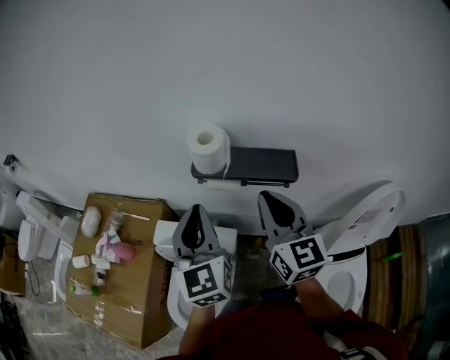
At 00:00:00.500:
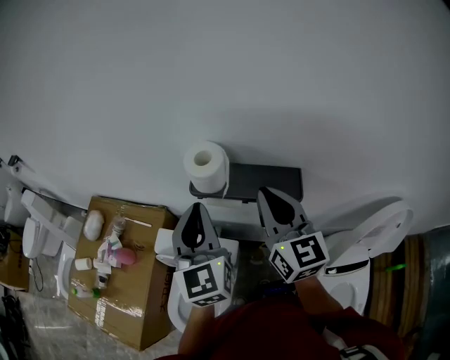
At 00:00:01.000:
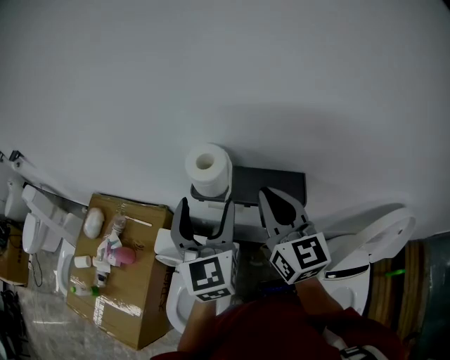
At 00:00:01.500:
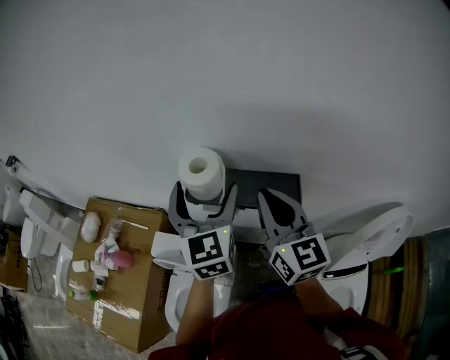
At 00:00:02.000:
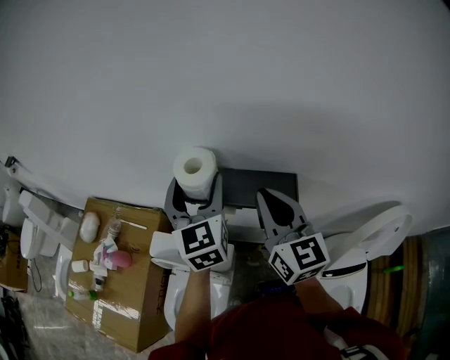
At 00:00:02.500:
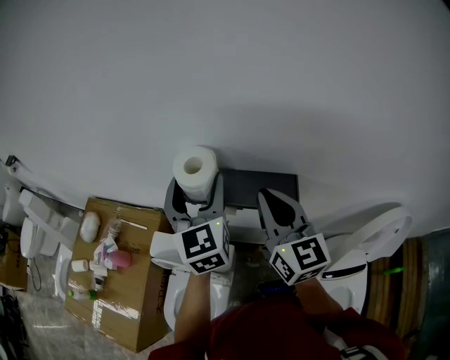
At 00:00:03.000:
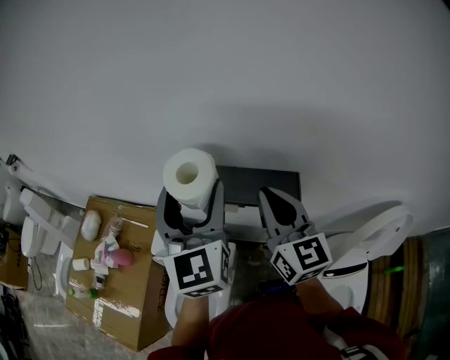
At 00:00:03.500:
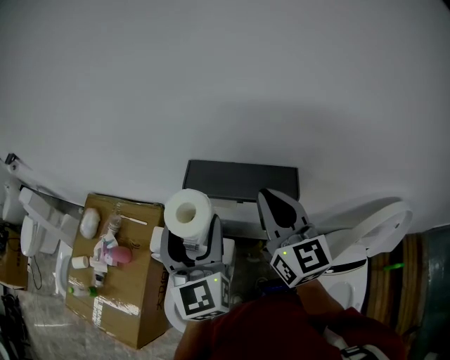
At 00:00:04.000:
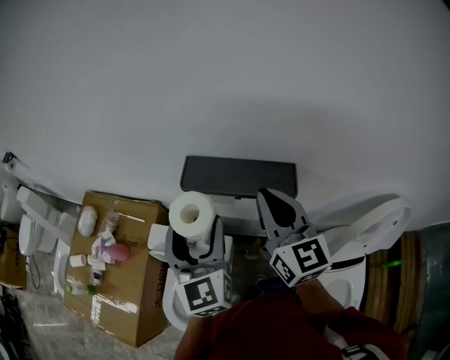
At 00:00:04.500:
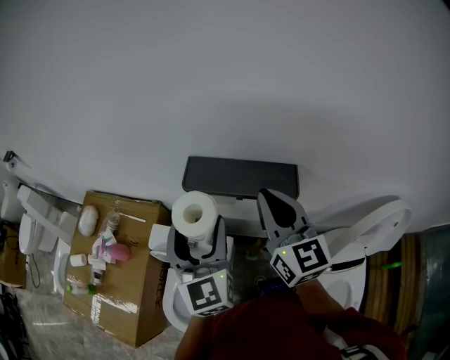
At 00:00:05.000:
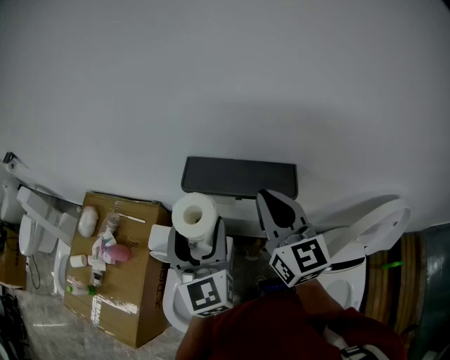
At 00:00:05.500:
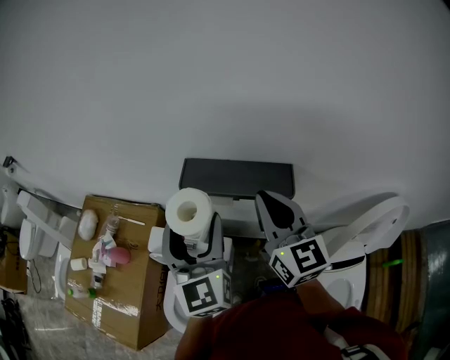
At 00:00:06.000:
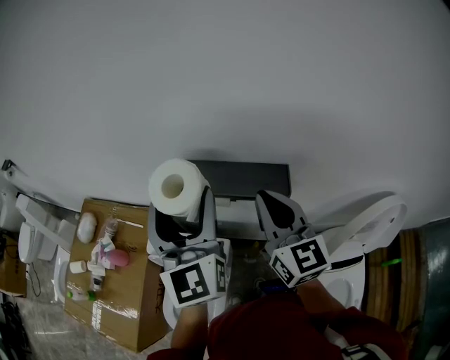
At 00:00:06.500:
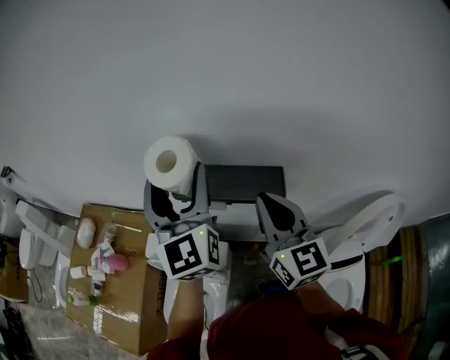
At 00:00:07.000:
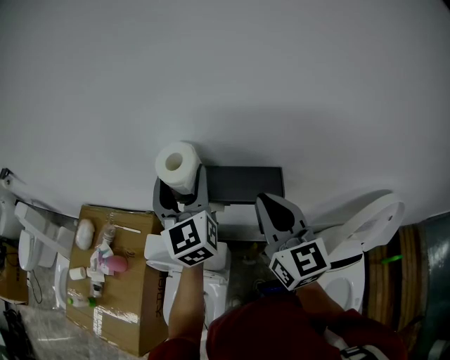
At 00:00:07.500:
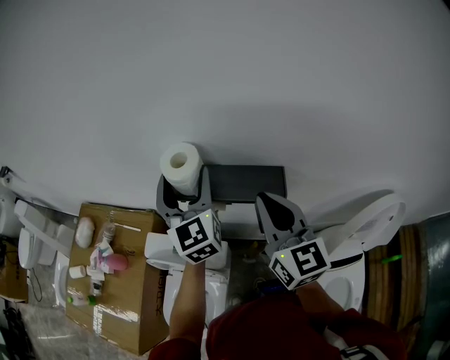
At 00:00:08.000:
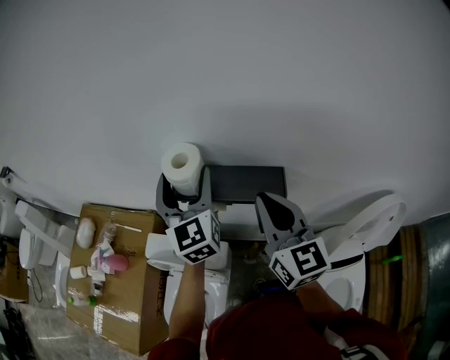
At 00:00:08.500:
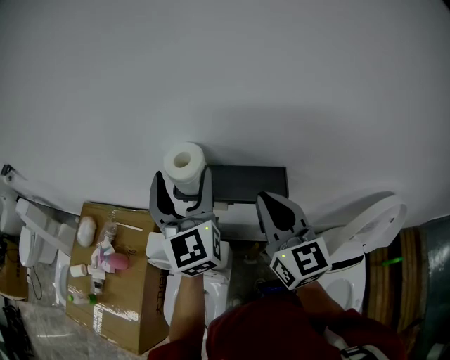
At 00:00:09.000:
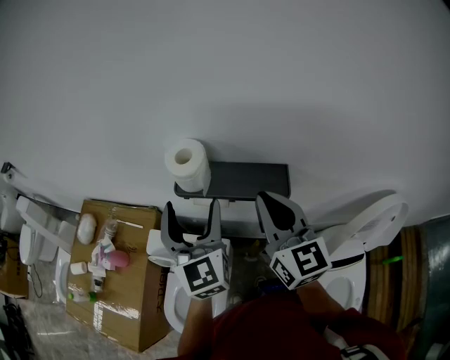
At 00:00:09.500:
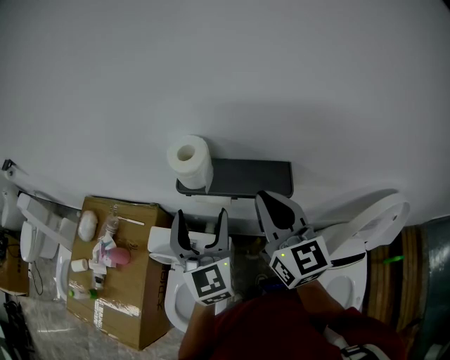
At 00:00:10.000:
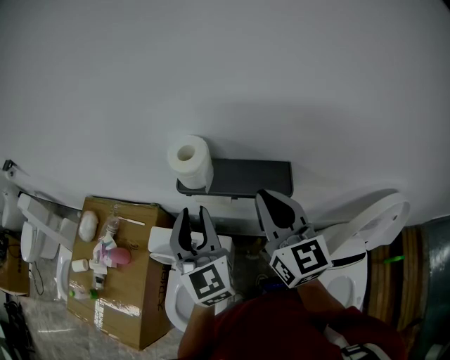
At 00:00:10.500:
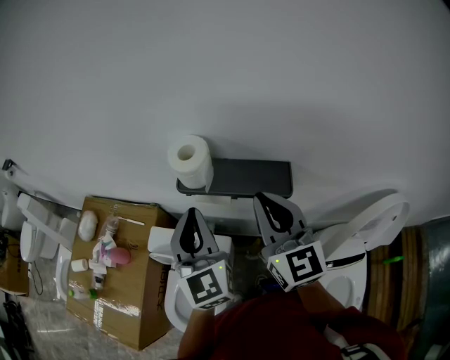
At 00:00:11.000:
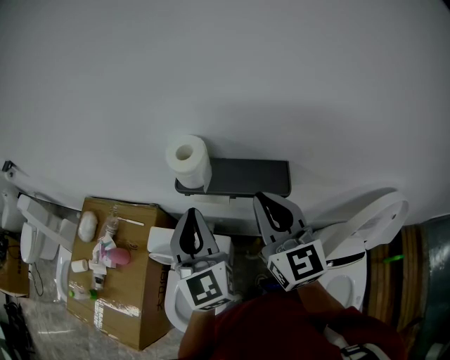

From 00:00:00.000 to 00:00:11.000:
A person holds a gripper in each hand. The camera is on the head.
From 00:00:00.000 to 00:00:02.000: The left gripper goes about 15 cm forward and to the right, and opens. Meanwhile the right gripper heads forward, covering roughly 10 cm.
From 00:00:02.000 to 00:00:03.500: The left gripper heads backward, covering approximately 10 cm.
From 00:00:03.500 to 00:00:05.500: The grippers stay close to where they were, moving slightly.
From 00:00:05.500 to 00:00:07.500: The left gripper goes roughly 10 cm forward.
From 00:00:07.500 to 00:00:09.000: The left gripper heads backward, covering approximately 10 cm.
From 00:00:09.000 to 00:00:11.000: The left gripper closes.

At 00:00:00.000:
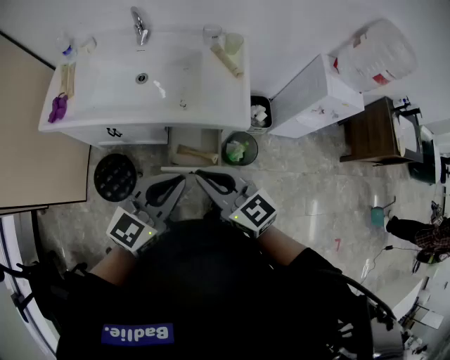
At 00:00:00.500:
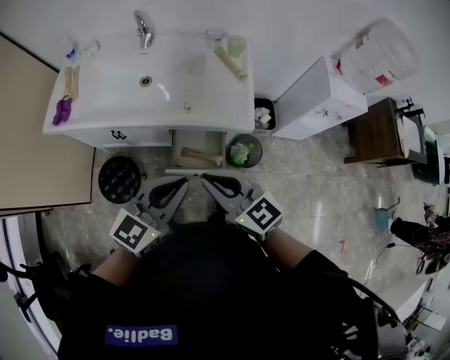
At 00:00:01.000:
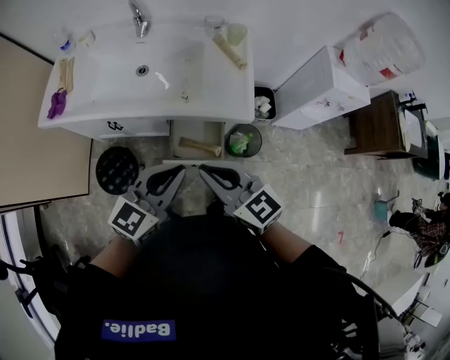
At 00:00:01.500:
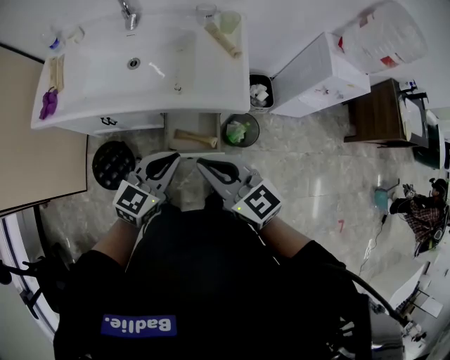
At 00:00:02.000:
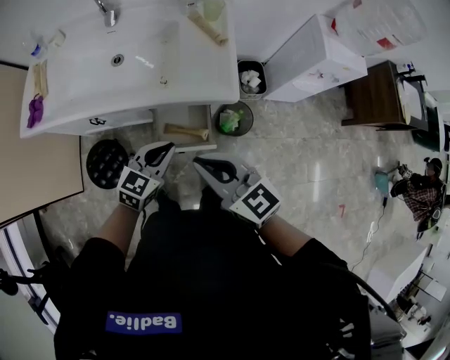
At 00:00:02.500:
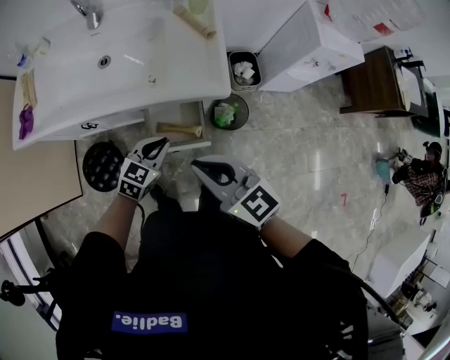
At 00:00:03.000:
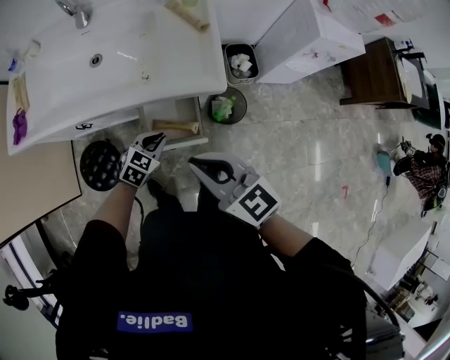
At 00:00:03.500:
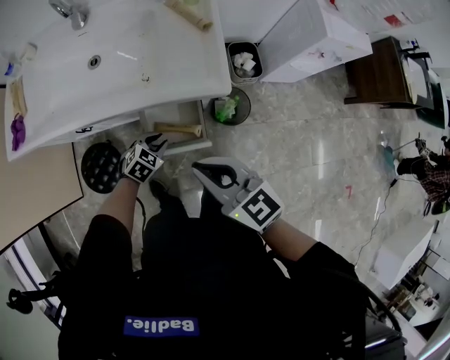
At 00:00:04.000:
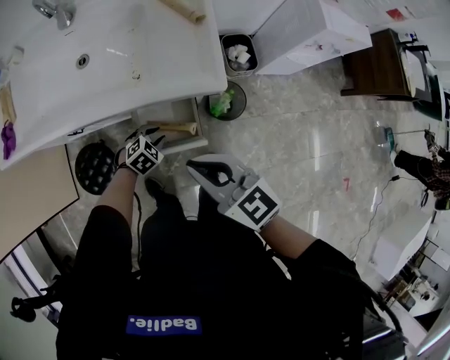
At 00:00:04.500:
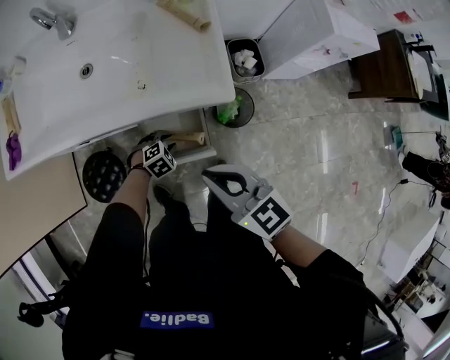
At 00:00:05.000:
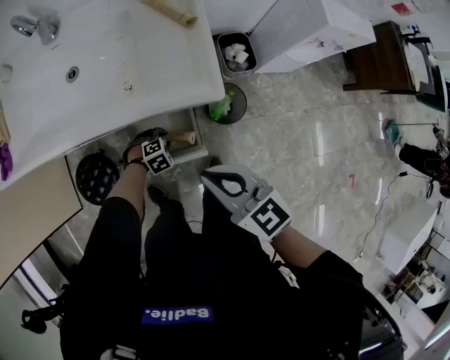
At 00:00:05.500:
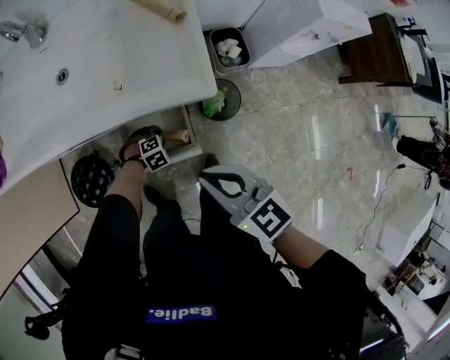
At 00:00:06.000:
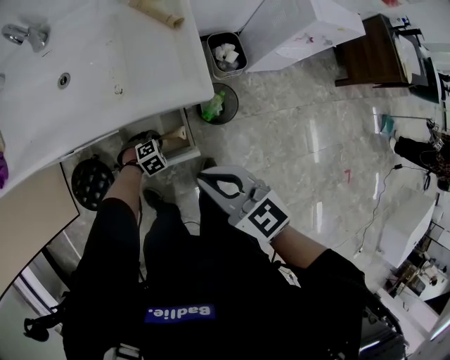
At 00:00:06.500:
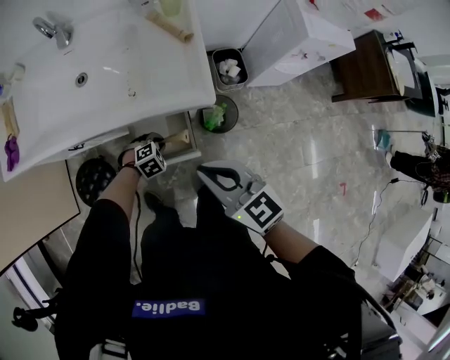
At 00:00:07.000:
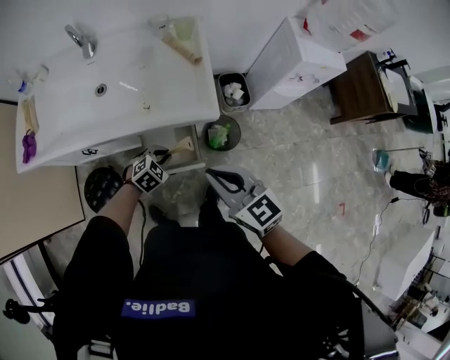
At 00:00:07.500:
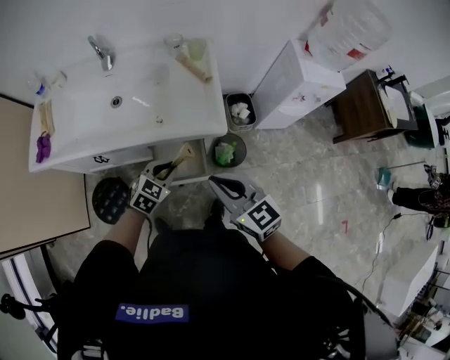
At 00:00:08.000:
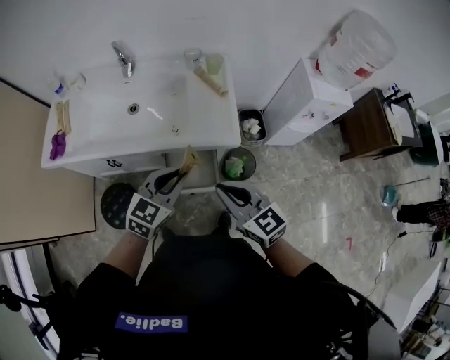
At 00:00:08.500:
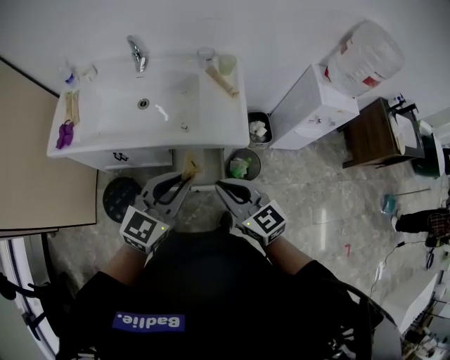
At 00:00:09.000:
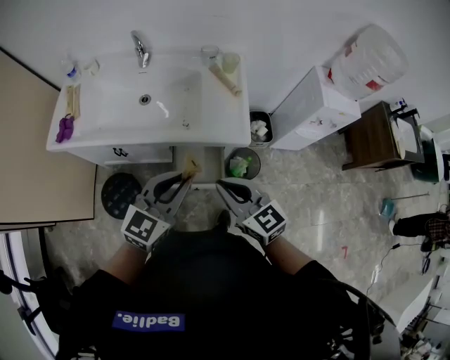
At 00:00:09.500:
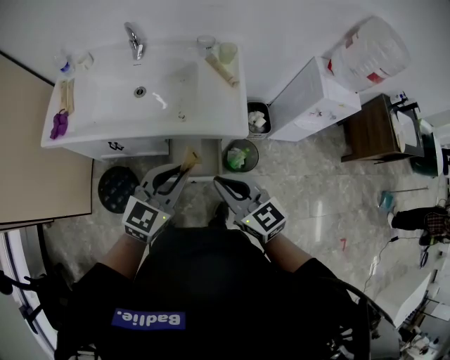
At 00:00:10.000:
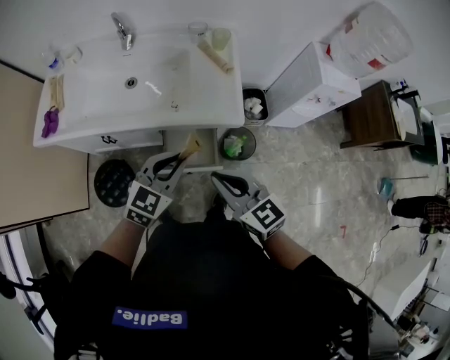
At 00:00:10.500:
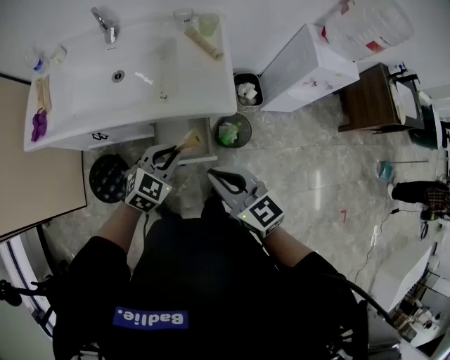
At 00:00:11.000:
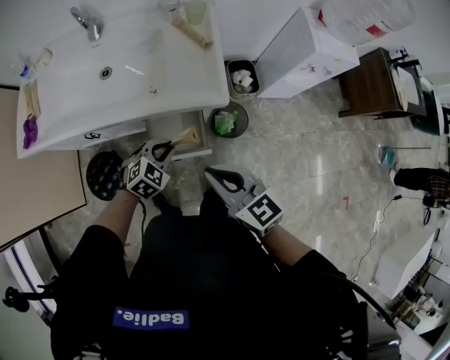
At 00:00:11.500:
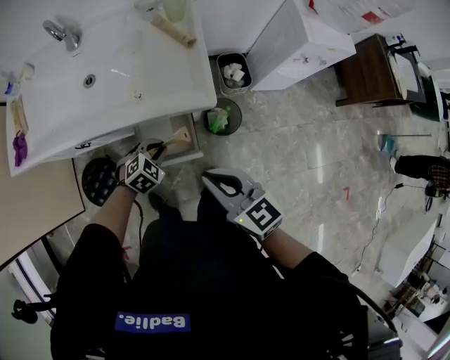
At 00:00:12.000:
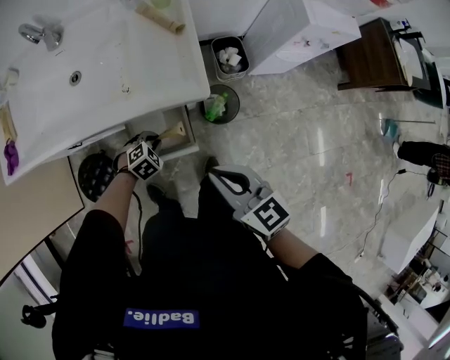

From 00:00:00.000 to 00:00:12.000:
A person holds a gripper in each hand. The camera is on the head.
From 00:00:00.000 to 00:00:02.000: The left gripper is displaced downward by approximately 15 cm, while the right gripper shifts by about 5 cm.
From 00:00:02.000 to 00:00:04.000: The left gripper shifts approximately 25 cm downward, angles its fingers downward, by approximately 40 degrees, and opens up. The right gripper is displaced downward by approximately 10 cm.
From 00:00:04.000 to 00:00:06.000: The left gripper shifts some 10 cm downward, and rotates roughly 20 degrees. Meanwhile the right gripper ends up about 5 cm from where it was.
From 00:00:06.000 to 00:00:08.000: The left gripper is displaced upward by some 50 cm, and tips its fingers upward by about 50 degrees. The right gripper shifts approximately 15 cm upward.
From 00:00:08.000 to 00:00:10.000: The left gripper reaches some 5 cm upward, then returns.
From 00:00:10.000 to 00:00:12.000: The left gripper heads downward, covering approximately 35 cm, and tilts its fingers approximately 40 degrees downward. The right gripper is displaced to the right and downward by roughly 15 cm.

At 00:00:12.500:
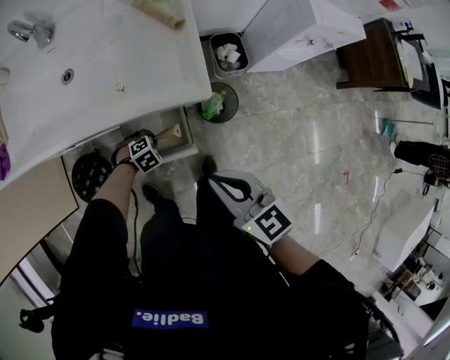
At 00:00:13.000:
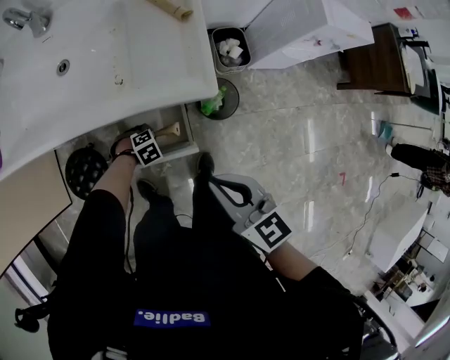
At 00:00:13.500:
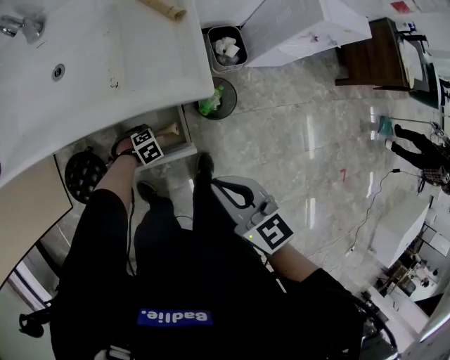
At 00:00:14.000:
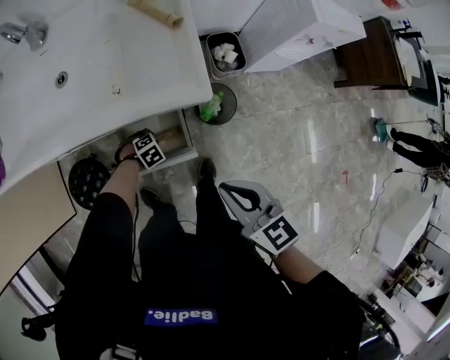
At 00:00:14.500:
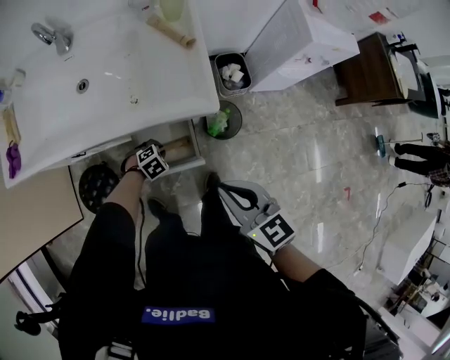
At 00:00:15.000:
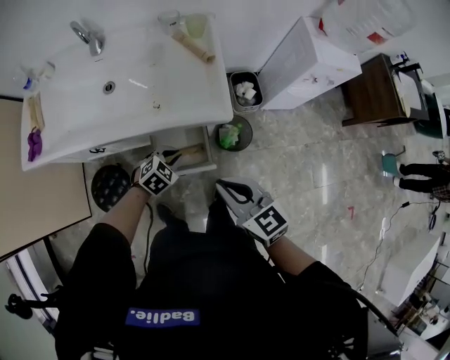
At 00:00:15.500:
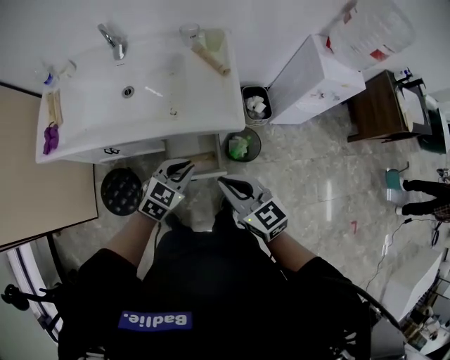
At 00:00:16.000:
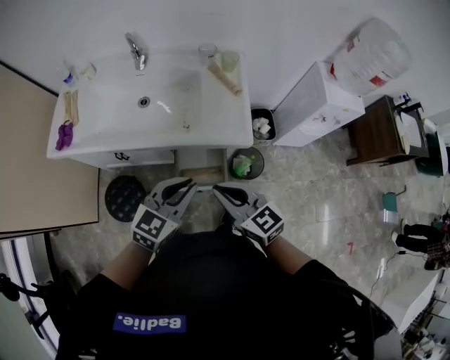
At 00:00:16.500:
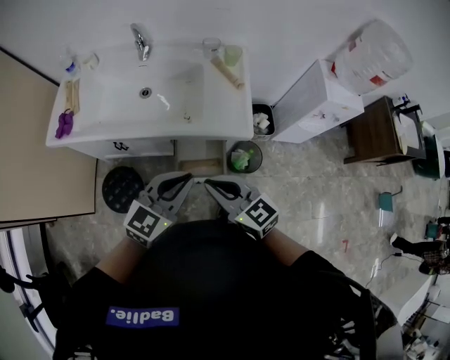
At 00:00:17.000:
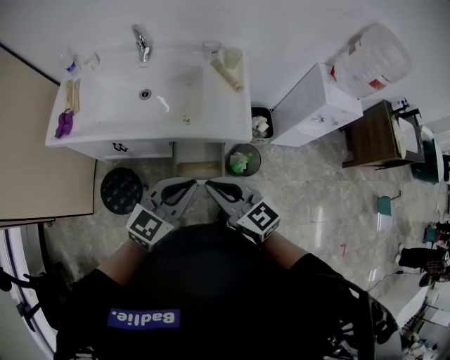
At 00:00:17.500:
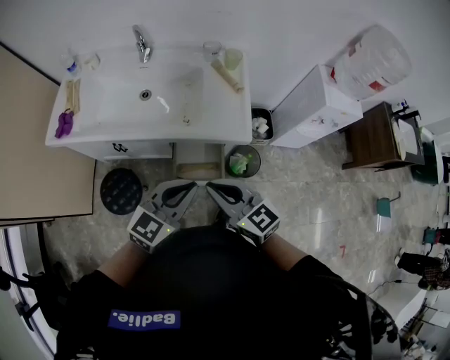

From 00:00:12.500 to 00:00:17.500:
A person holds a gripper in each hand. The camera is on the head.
From 00:00:12.500 to 00:00:15.000: The left gripper travels upward by some 15 cm, and rotates roughly 30 degrees. Meanwhile the right gripper changes place by about 5 cm.
From 00:00:15.000 to 00:00:17.500: The right gripper is displaced to the left and upward by about 15 cm. Meanwhile the left gripper shifts about 30 cm upward, and tips its fingers upward by roughly 40 degrees.
